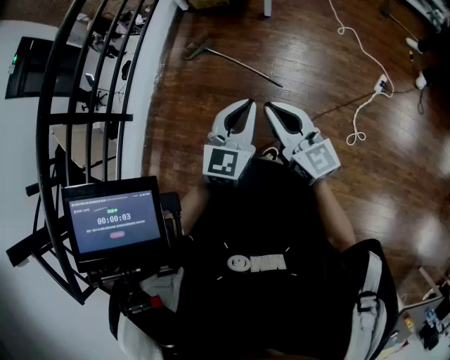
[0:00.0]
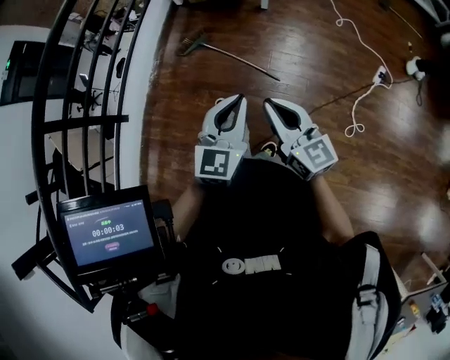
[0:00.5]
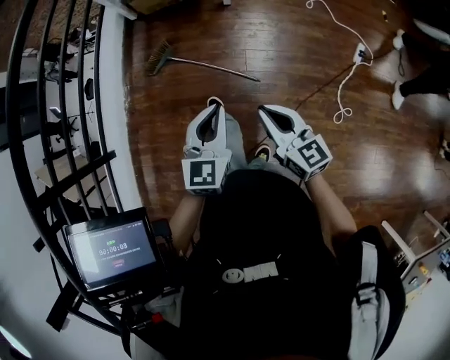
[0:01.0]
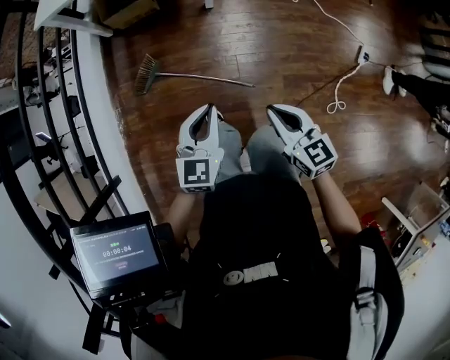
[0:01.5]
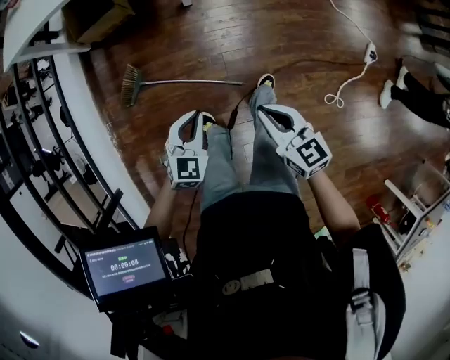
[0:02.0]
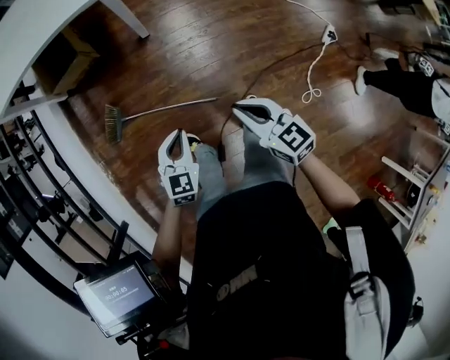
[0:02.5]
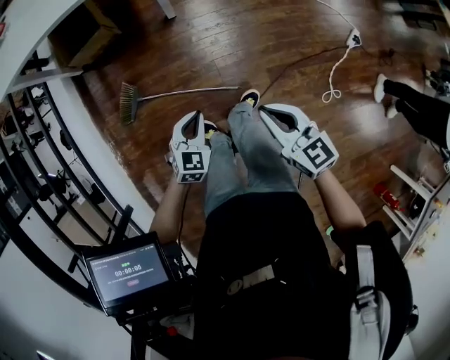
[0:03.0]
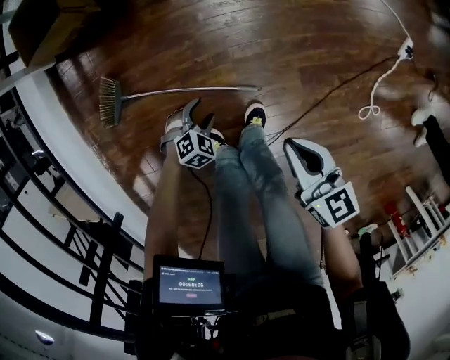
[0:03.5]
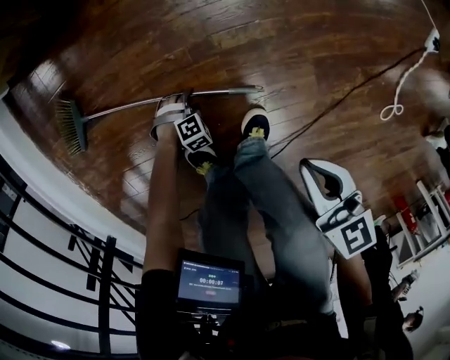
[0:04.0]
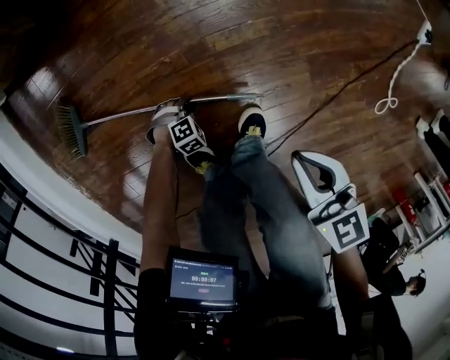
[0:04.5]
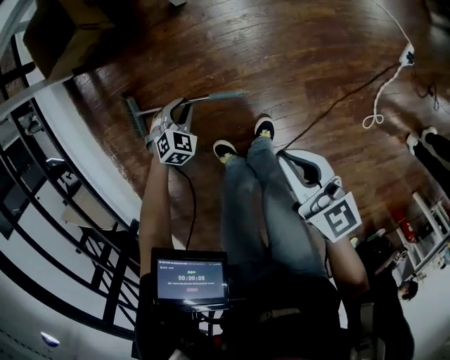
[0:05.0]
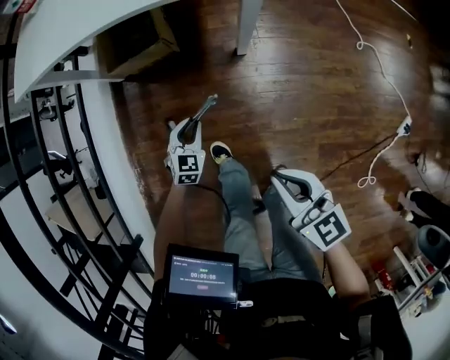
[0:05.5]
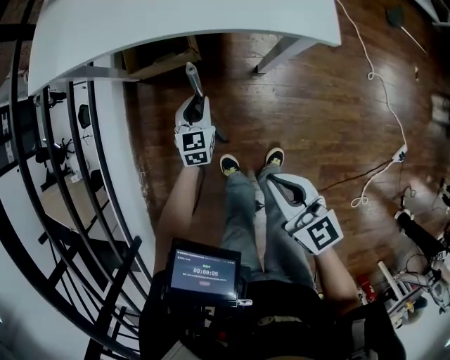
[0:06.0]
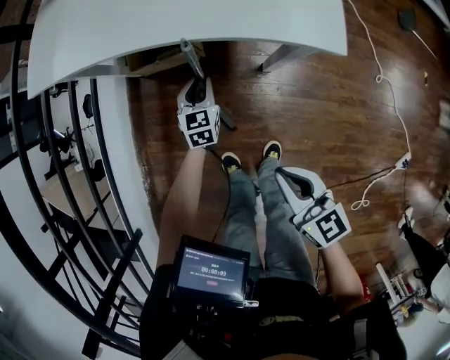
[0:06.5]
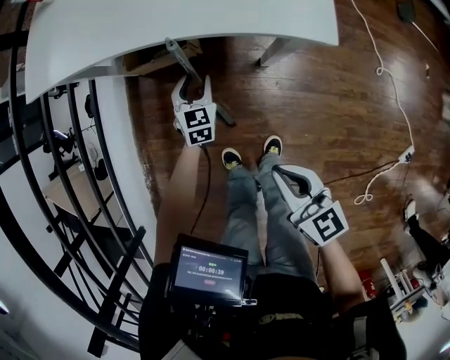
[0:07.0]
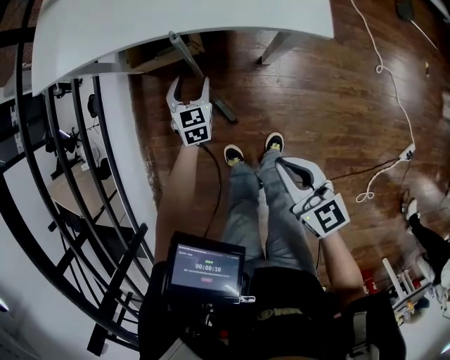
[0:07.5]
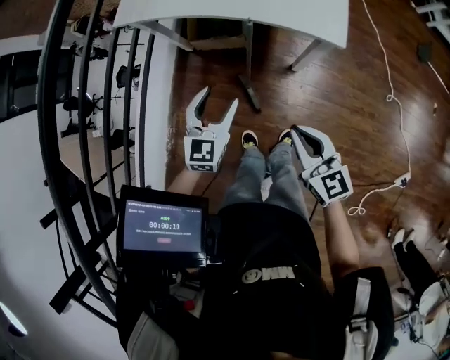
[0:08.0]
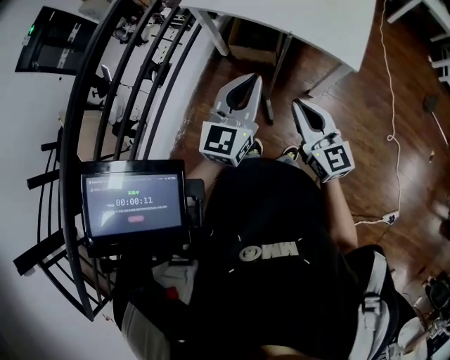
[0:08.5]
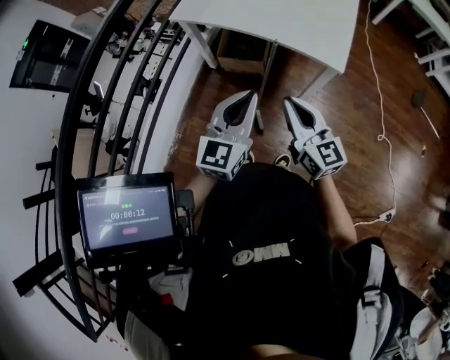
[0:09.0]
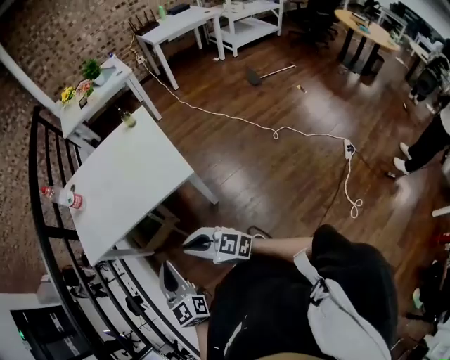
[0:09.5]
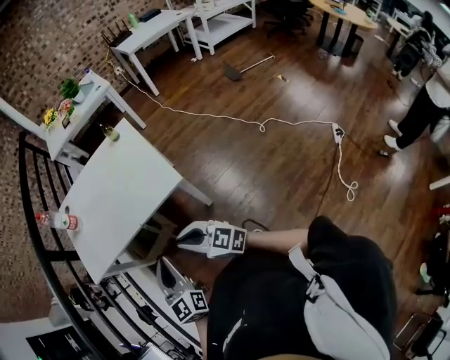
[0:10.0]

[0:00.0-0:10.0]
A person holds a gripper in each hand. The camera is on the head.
0:00.0 to 0:02.0: The grippers both shift forward and downward by roughly 40 cm. The left gripper changes its angle by approximately 30 degrees. The right gripper turns by roughly 30 degrees.
0:02.0 to 0:04.0: The right gripper is displaced downward by approximately 40 cm; the left gripper is displaced downward by about 70 cm, points its fingers some 50 degrees further downward, and opens.
0:04.0 to 0:06.0: Both grippers are carried roughly 50 cm. The right gripper turns by approximately 30 degrees. The left gripper is displaced upward by about 50 cm, angles its fingers upward, by roughly 50 degrees, and closes.
0:06.0 to 0:08.0: The right gripper shifts some 15 cm upward; the left gripper shifts some 30 cm upward, and opens up.
0:08.0 to 0:10.0: The left gripper heads upward and to the right, covering roughly 20 cm, swivels roughly 20 degrees, and closes its fingers; the right gripper goes about 10 cm upward.

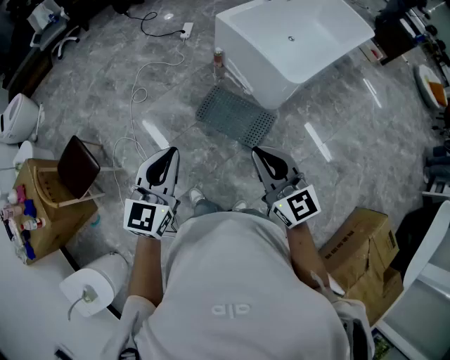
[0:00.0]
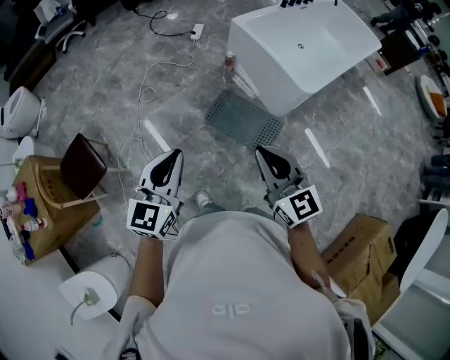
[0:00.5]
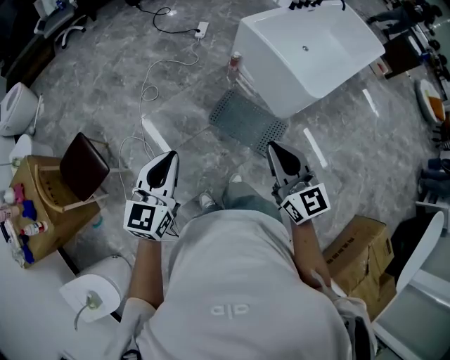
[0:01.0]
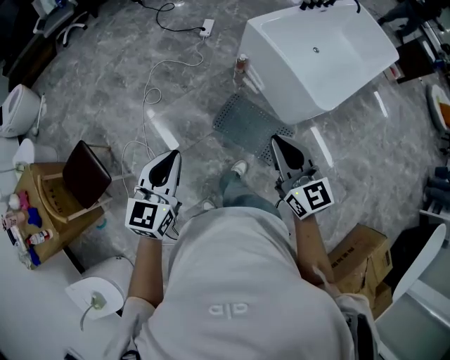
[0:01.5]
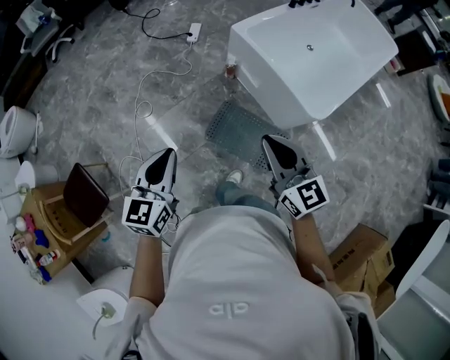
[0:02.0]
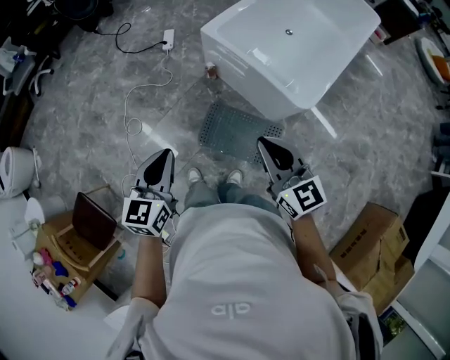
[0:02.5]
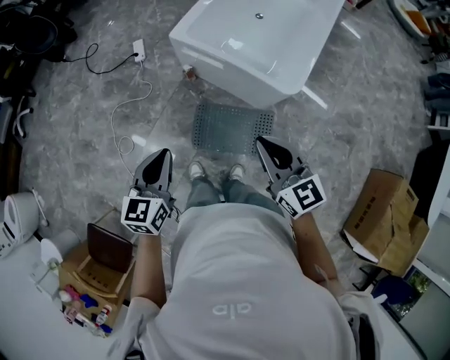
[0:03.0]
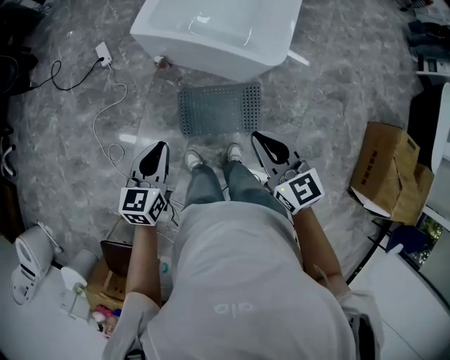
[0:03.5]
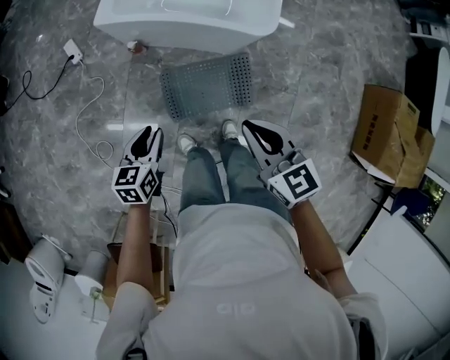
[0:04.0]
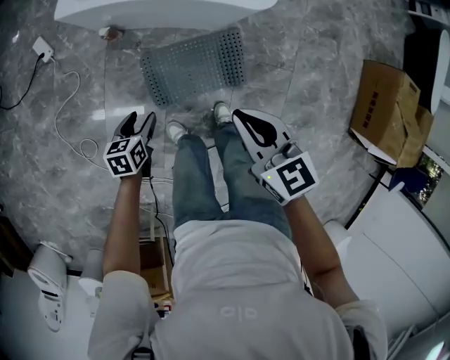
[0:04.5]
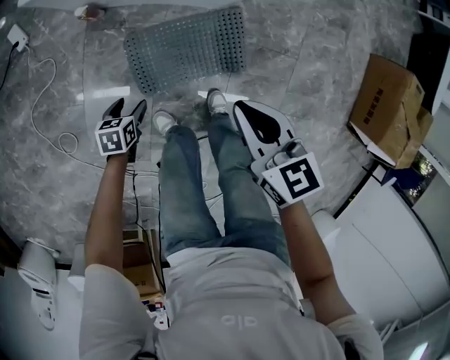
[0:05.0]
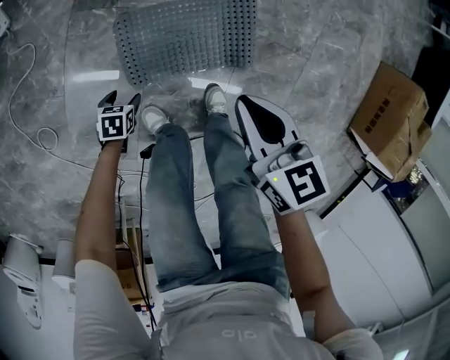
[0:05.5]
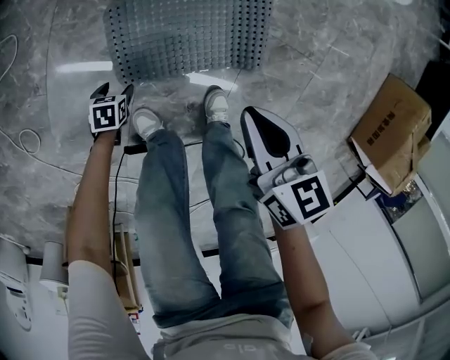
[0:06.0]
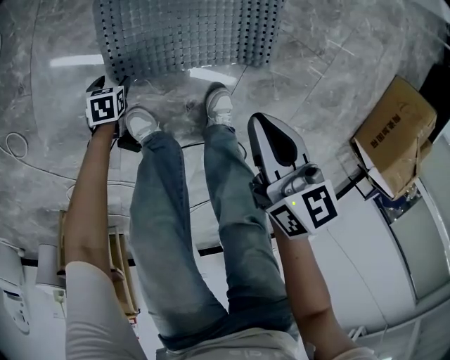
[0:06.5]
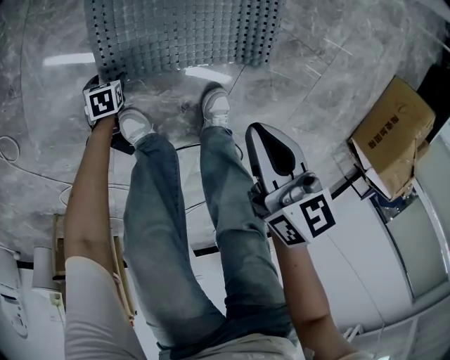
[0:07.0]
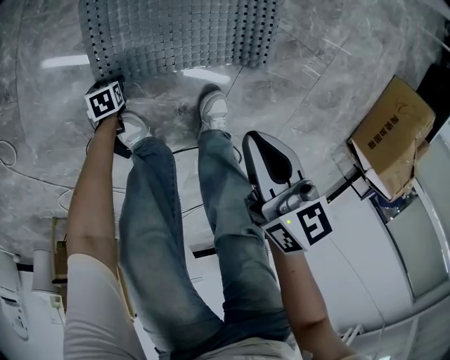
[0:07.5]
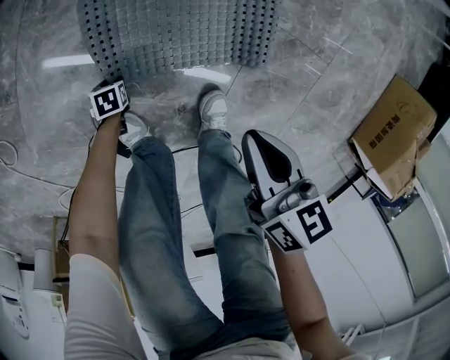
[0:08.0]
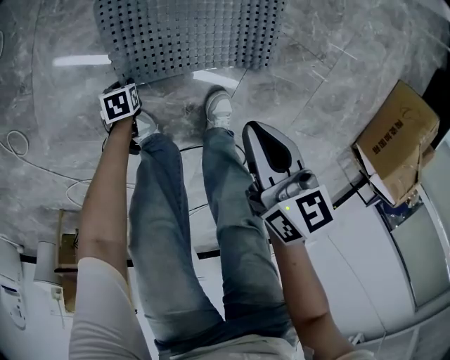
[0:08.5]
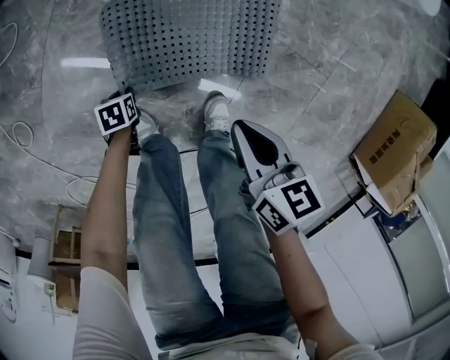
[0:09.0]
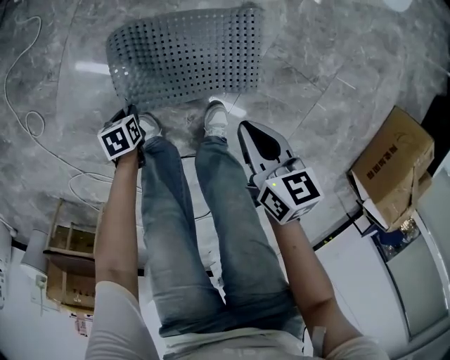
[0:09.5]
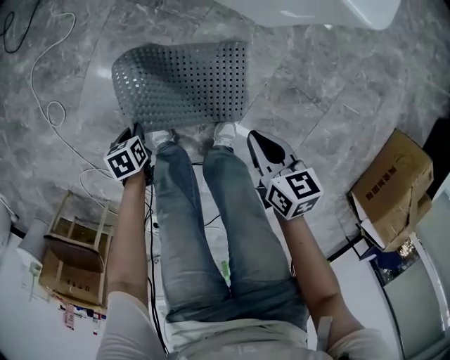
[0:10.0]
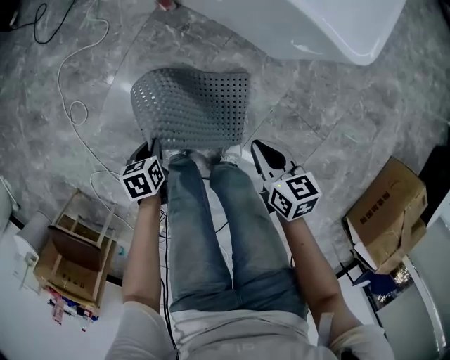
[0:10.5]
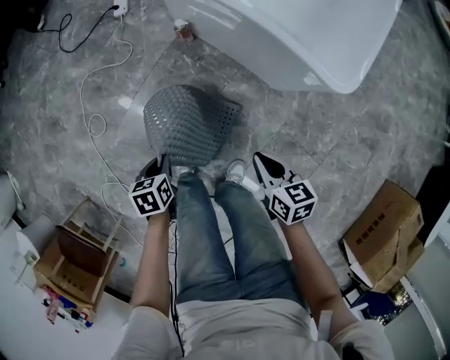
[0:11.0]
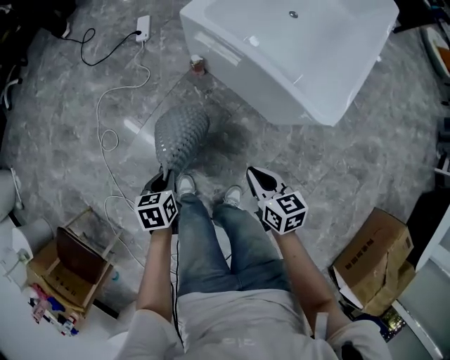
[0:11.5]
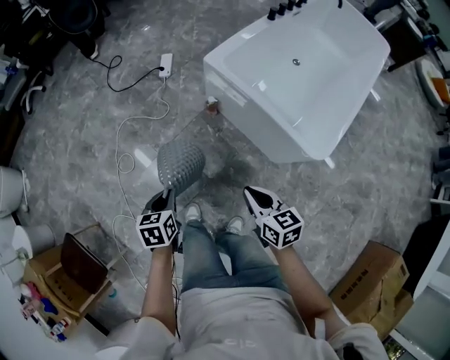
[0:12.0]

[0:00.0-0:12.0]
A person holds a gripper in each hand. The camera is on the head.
0:00.0 to 0:02.0: The grippers both shift forward by roughly 35 cm.
0:02.0 to 0:04.0: The left gripper goes approximately 30 cm downward, and swivels approximately 50 degrees. Meanwhile the right gripper moves downward, about 15 cm, and turns by about 40 degrees.
0:04.0 to 0:06.0: Both grippers move downward, about 60 cm. The left gripper tips its fingers downward by roughly 30 degrees, and opens. The right gripper turns by roughly 20 degrees.
0:06.0 to 0:08.0: The right gripper shifts some 10 cm downward, while the left gripper moves downward, some 15 cm, and closes its fingers.
0:08.0 to 0:10.0: The left gripper travels upward by about 35 cm, rotates some 20 degrees, and closes its fingers. Meanwhile the right gripper moves upward, about 10 cm.
0:10.0 to 0:12.0: The right gripper shifts some 35 cm upward and forward, and turns by about 30 degrees. The left gripper is displaced upward by roughly 50 cm, and swivels roughly 30 degrees.

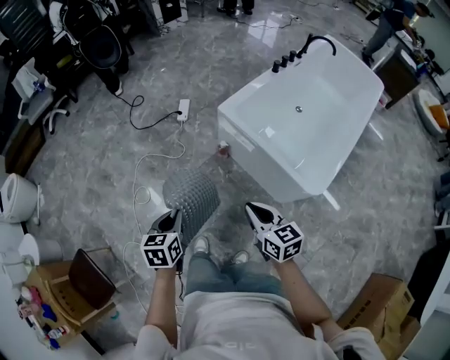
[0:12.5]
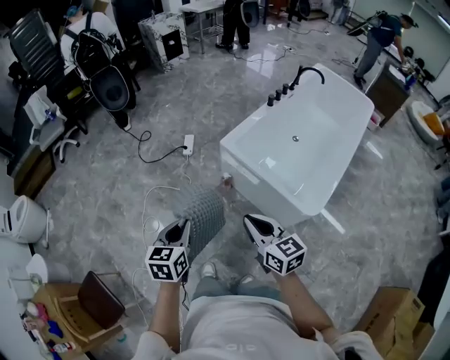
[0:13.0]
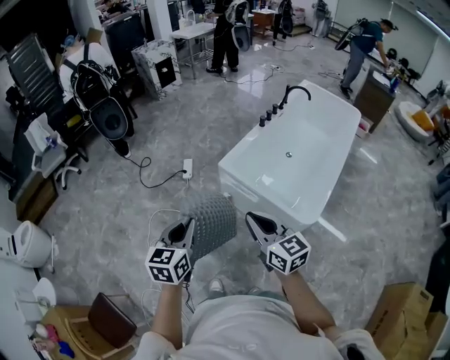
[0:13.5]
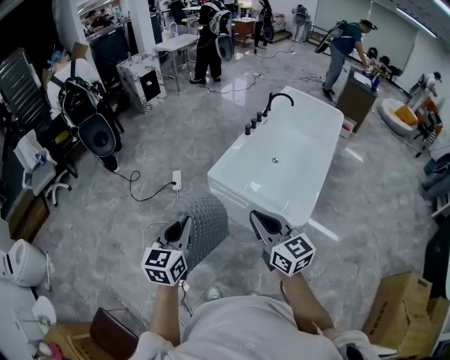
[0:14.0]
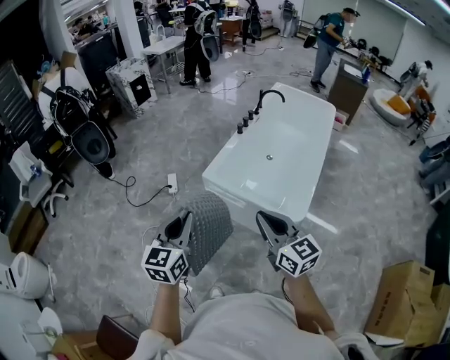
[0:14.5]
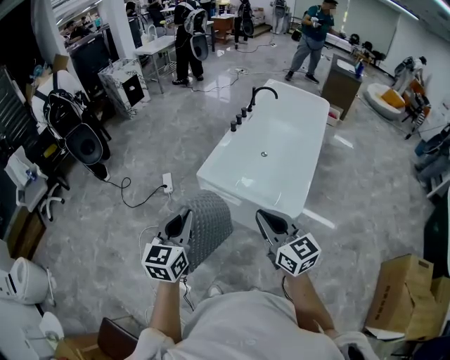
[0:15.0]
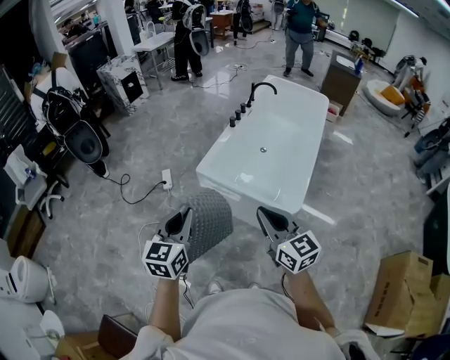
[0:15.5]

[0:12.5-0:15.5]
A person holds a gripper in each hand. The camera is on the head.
0:12.5 to 0:14.0: Both grippers travel together upward, about 30 cm. The right gripper turns by some 20 degrees, while the left gripper swivels some 40 degrees.
0:14.0 to 0:15.5: The right gripper goes approximately 5 cm to the right.

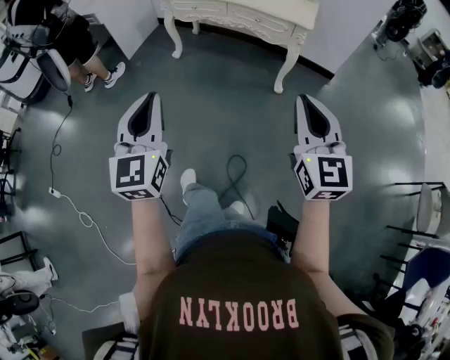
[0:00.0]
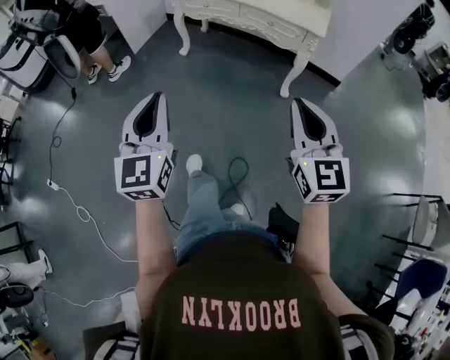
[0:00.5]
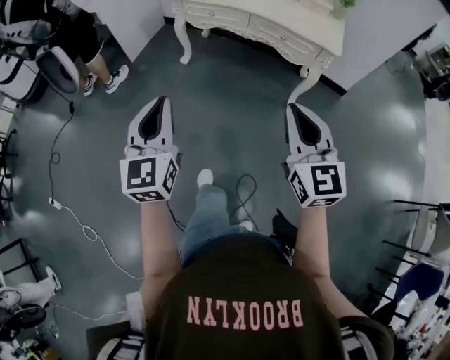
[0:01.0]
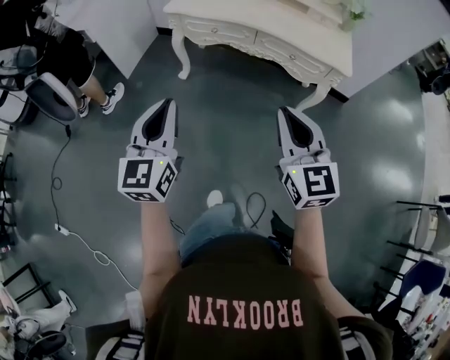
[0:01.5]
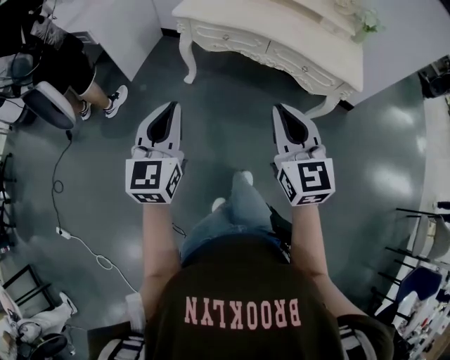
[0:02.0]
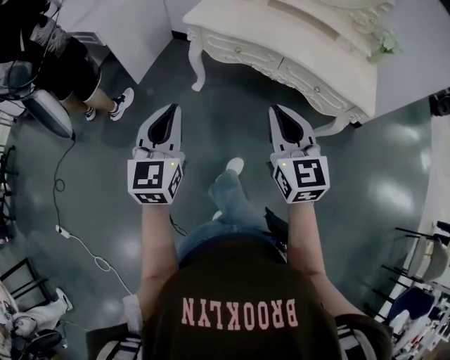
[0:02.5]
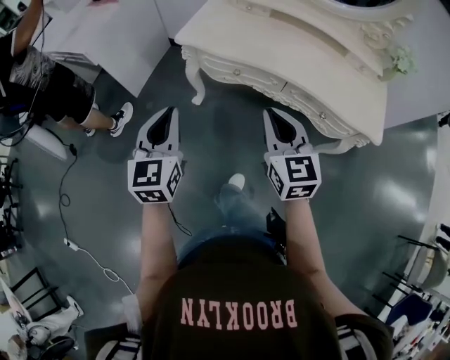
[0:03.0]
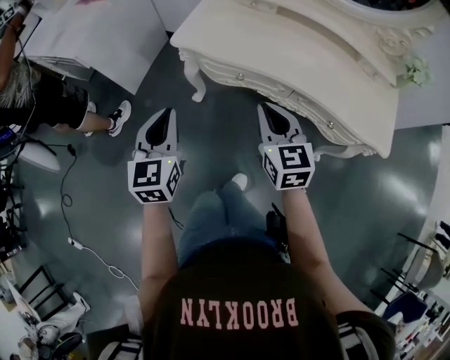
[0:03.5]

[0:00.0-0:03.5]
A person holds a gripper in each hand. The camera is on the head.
0:00.0 to 0:02.0: The pair of grippers is taken forward and to the left, roughly 40 cm.
0:02.0 to 0:03.5: The two grippers go some 35 cm forward.
